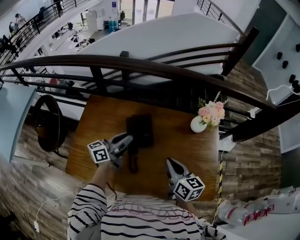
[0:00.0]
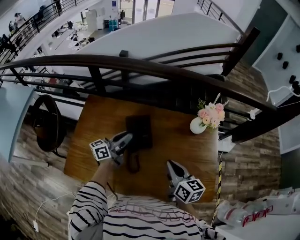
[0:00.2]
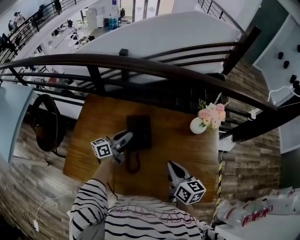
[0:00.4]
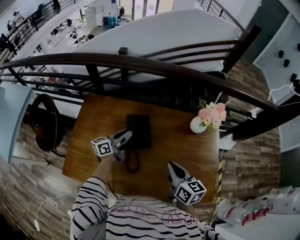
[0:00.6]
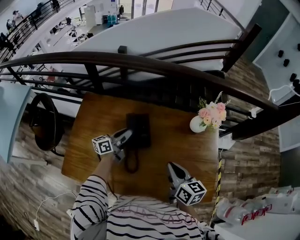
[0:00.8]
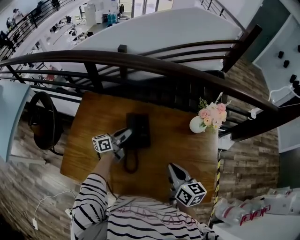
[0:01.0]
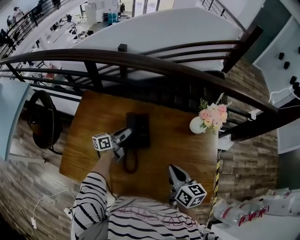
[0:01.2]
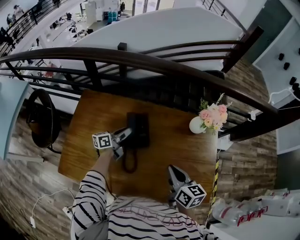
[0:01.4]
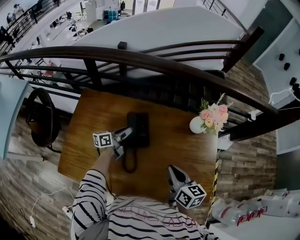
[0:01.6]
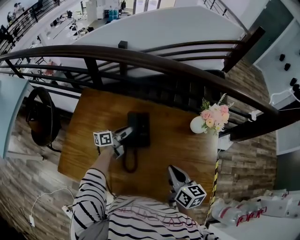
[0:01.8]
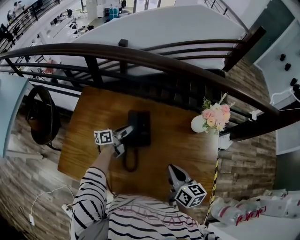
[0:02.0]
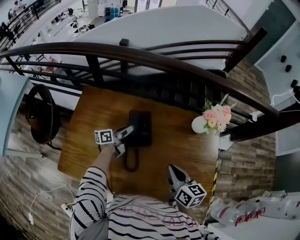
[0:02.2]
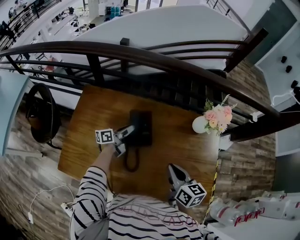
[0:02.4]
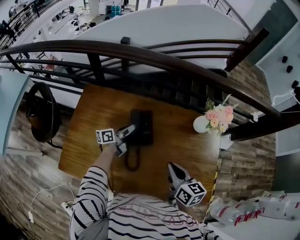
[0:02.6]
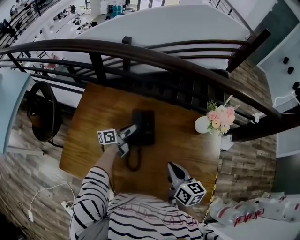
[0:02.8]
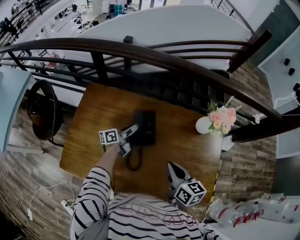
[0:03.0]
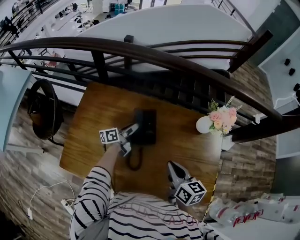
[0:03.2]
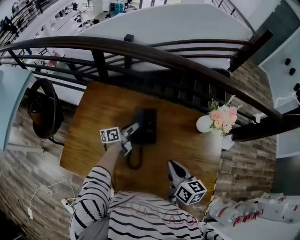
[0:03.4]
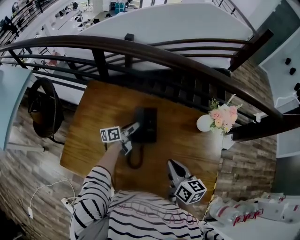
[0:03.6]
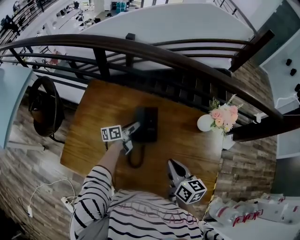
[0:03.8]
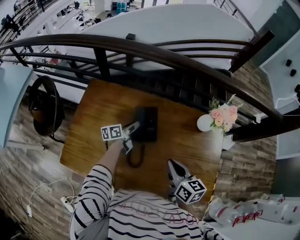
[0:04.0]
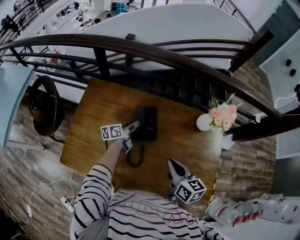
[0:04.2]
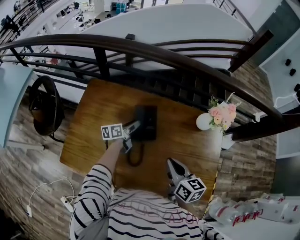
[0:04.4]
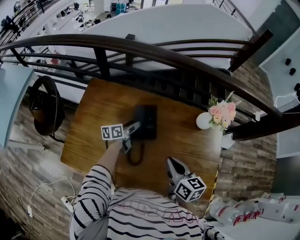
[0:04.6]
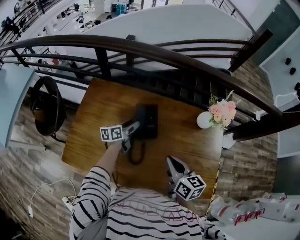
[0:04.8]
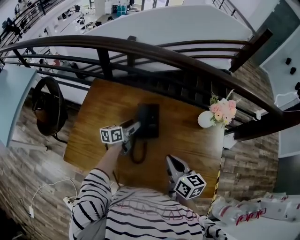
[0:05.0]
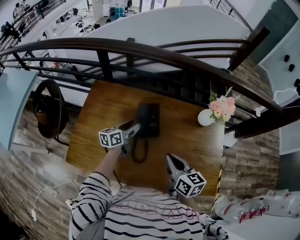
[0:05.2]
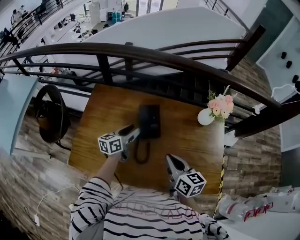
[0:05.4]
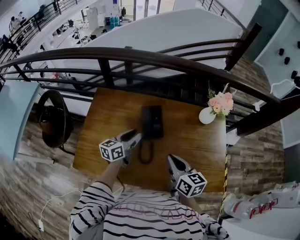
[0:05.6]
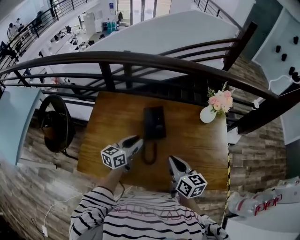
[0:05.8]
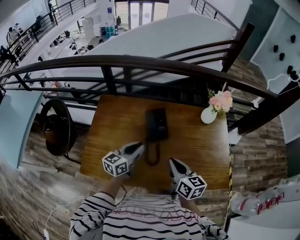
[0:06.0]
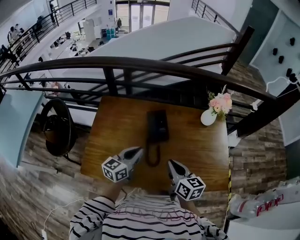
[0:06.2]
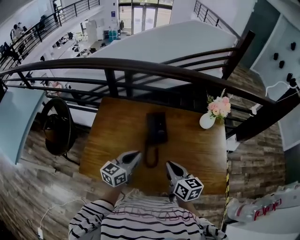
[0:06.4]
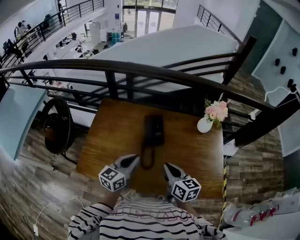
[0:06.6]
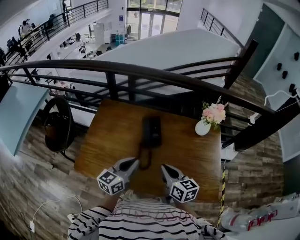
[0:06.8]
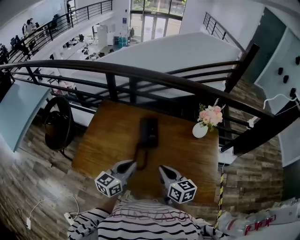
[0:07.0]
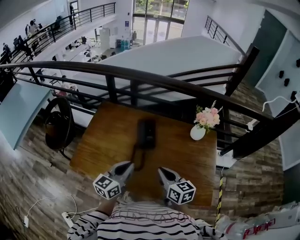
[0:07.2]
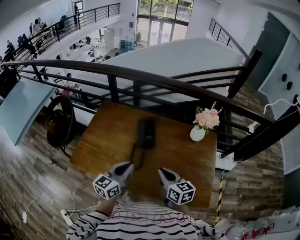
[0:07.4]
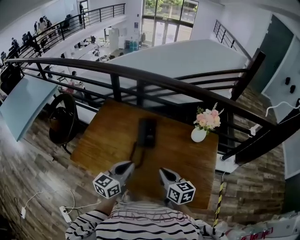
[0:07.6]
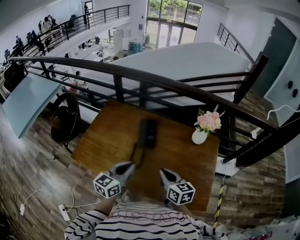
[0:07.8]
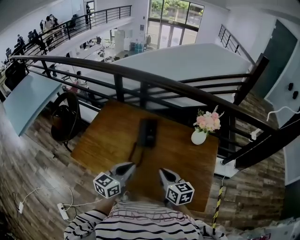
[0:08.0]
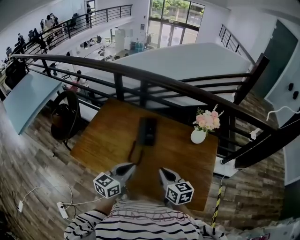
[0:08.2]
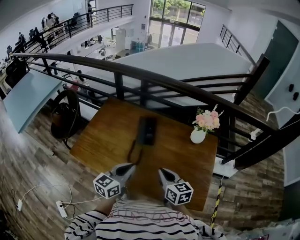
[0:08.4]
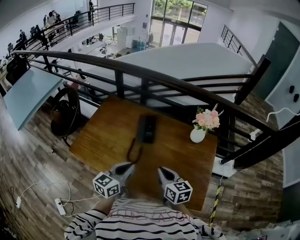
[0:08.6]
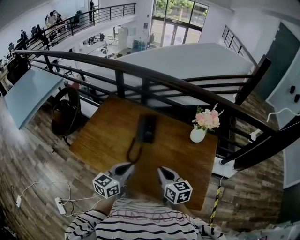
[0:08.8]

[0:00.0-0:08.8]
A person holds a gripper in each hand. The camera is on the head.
0:00.0 to 0:01.4: The left gripper travels downward and forward by some 15 cm.
0:01.4 to 0:04.4: The grippers move only a little.
0:04.4 to 0:05.8: The right gripper is displaced backward and to the left by about 10 cm. Meanwhile the left gripper is displaced backward and upward by roughly 20 cm, and rotates approximately 30 degrees.
0:05.8 to 0:07.4: The right gripper heads to the right and backward, covering roughly 10 cm. The left gripper moves backward, to the right and upward, some 20 cm, and closes.
0:07.4 to 0:08.8: The left gripper moves roughly 5 cm.

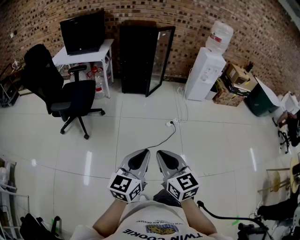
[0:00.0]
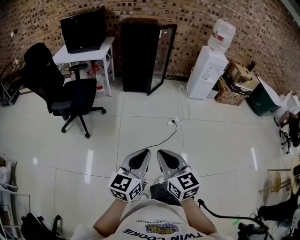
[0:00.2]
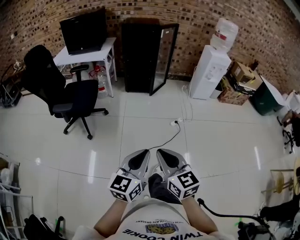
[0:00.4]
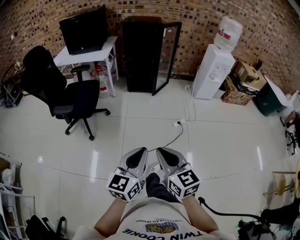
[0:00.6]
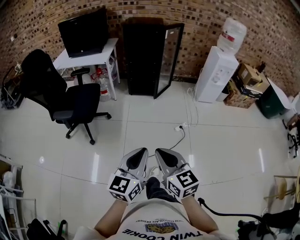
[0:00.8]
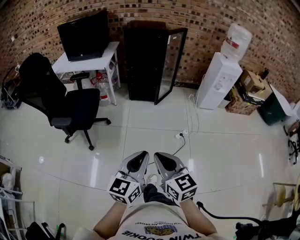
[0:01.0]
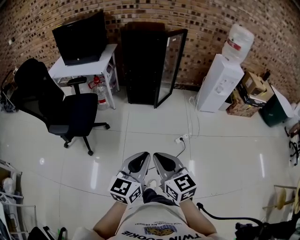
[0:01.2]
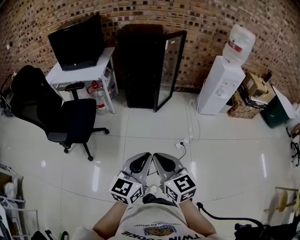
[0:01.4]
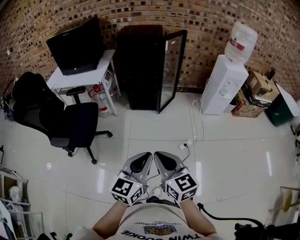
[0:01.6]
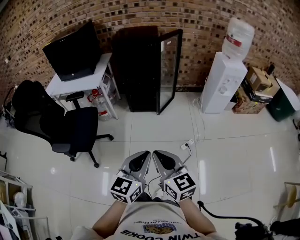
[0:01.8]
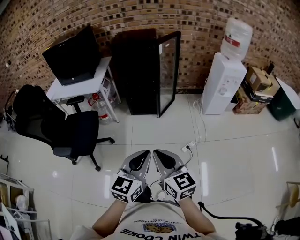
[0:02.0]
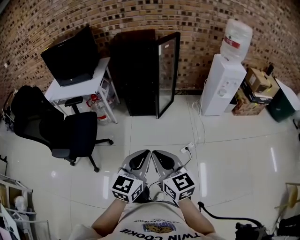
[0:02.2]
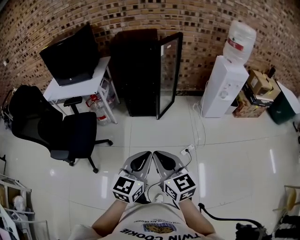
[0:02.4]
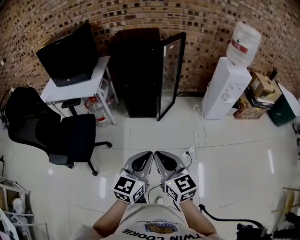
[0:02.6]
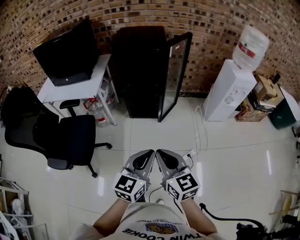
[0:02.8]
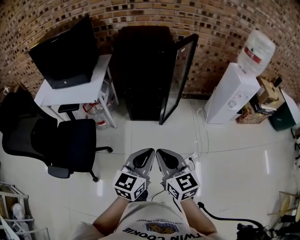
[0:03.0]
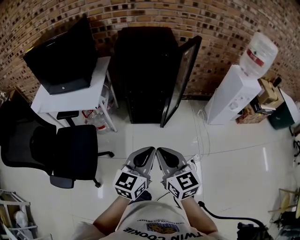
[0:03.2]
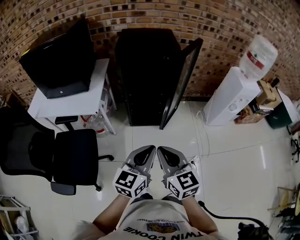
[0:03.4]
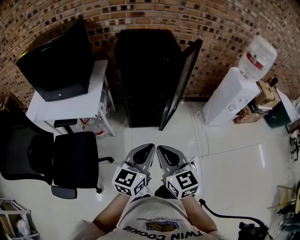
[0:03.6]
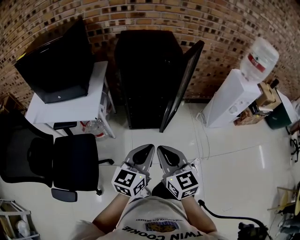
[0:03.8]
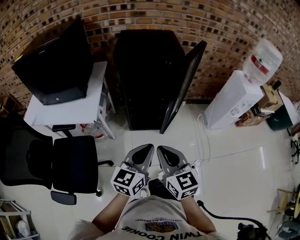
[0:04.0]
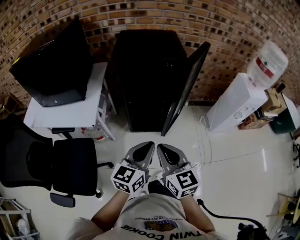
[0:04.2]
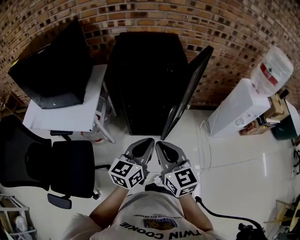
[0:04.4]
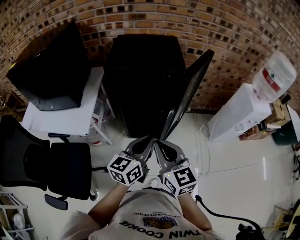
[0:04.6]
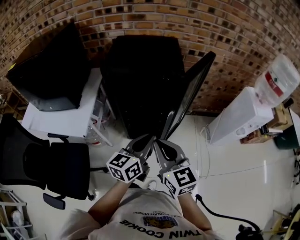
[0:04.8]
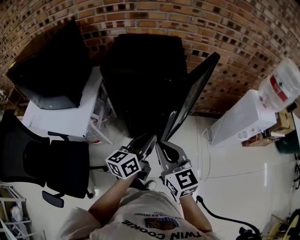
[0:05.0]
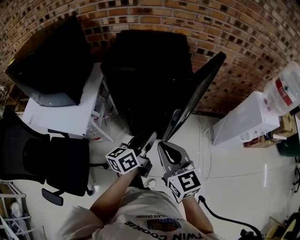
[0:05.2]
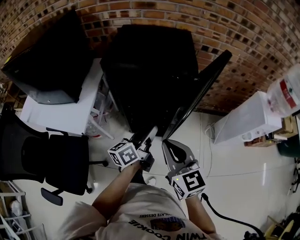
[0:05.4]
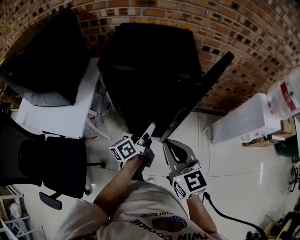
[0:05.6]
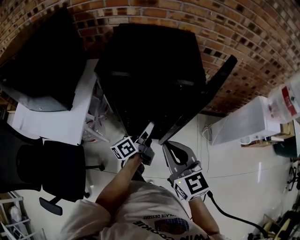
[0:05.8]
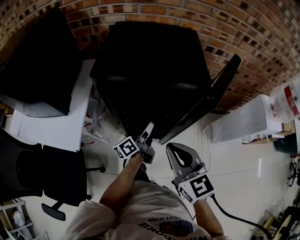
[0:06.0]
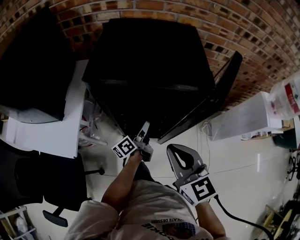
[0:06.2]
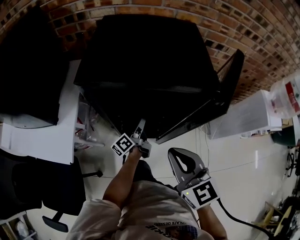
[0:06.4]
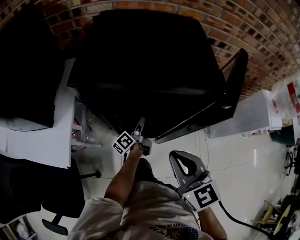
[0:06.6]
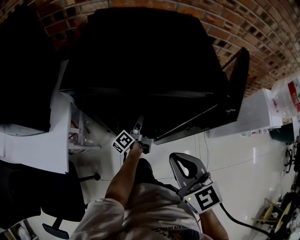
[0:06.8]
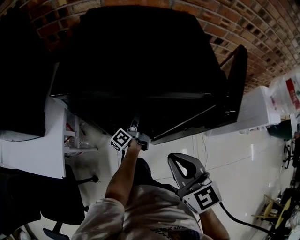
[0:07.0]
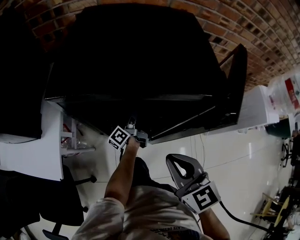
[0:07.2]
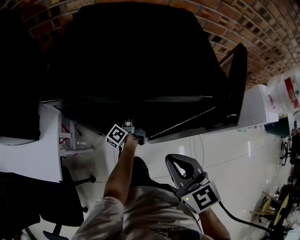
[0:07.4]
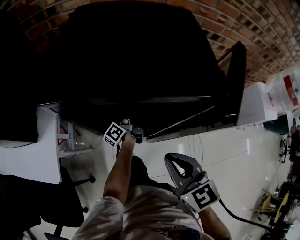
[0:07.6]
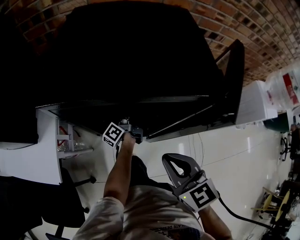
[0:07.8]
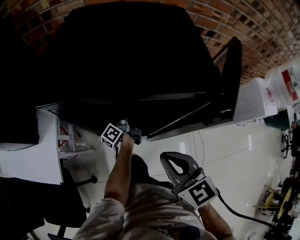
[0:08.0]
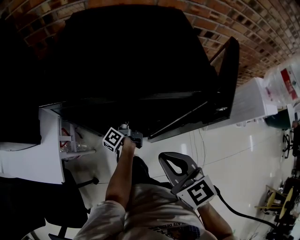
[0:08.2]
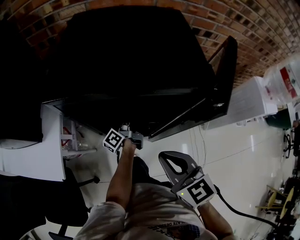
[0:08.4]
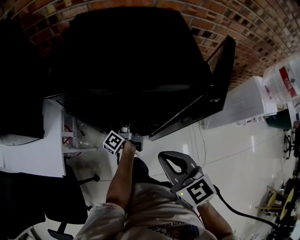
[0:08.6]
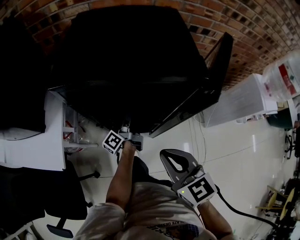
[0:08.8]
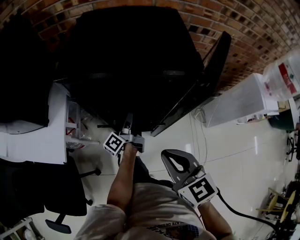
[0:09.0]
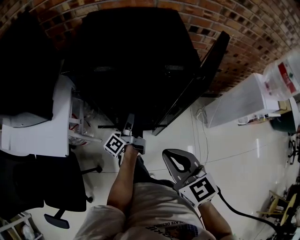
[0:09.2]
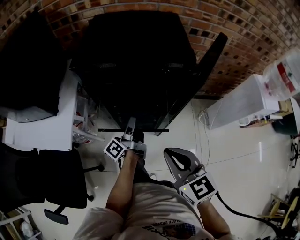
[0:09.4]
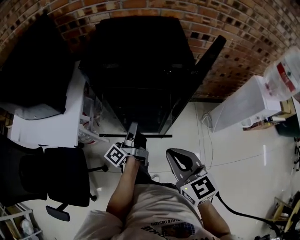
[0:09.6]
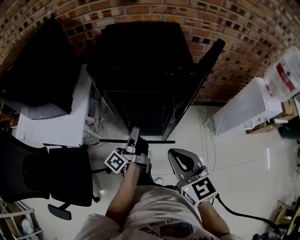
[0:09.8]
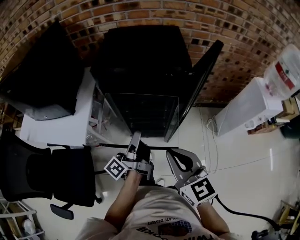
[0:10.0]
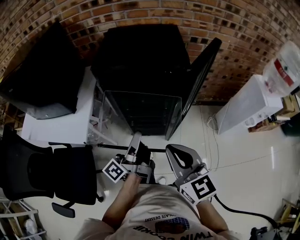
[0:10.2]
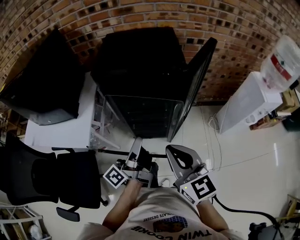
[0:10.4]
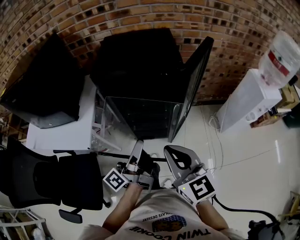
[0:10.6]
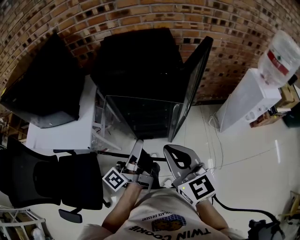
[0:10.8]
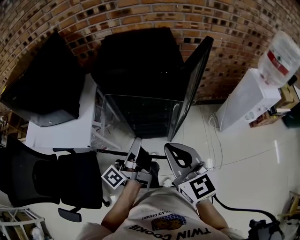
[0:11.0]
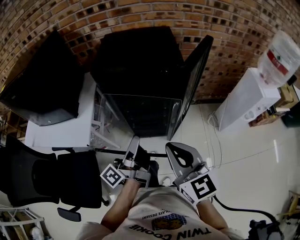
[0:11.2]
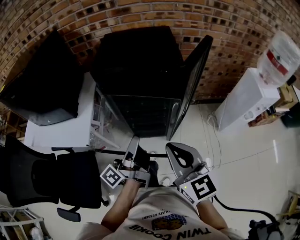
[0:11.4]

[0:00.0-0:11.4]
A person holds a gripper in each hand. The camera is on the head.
0:00.0 to 0:01.4: Both grippers travel together forward, approximately 30 cm.
0:01.4 to 0:02.8: The grippers both shift forward by some 20 cm.
0:02.8 to 0:04.2: The grippers both shift forward and to the left by about 30 cm.
0:04.2 to 0:05.6: The grippers both shift forward by some 20 cm. The left gripper rolls counterclockwise, seen from behind, by about 40 degrees, and opens up.
0:05.6 to 0:07.2: The right gripper moves forward and downward, approximately 15 cm; the left gripper travels forward and downward by roughly 30 cm, and turns by roughly 20 degrees.
0:07.2 to 0:08.6: The left gripper changes place by some 5 cm, and closes.
0:08.6 to 0:10.0: The left gripper heads backward and upward, covering approximately 30 cm, while the right gripper heads backward and upward, covering some 15 cm.
0:10.0 to 0:11.4: The left gripper travels backward and upward by approximately 10 cm.

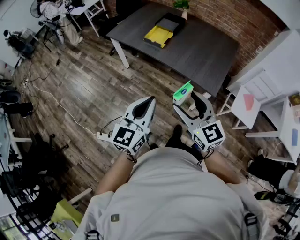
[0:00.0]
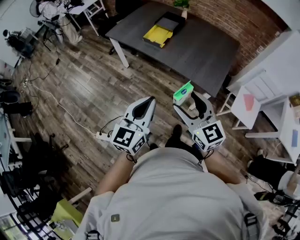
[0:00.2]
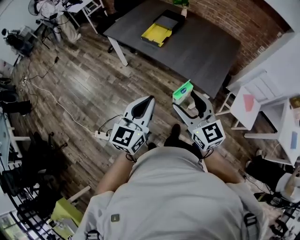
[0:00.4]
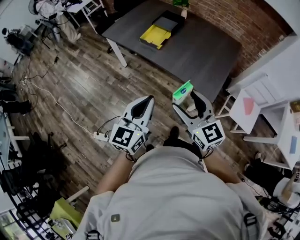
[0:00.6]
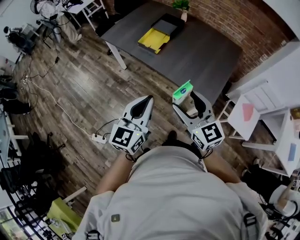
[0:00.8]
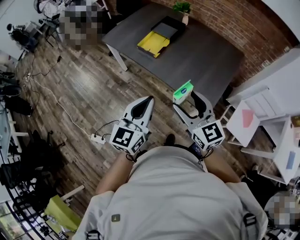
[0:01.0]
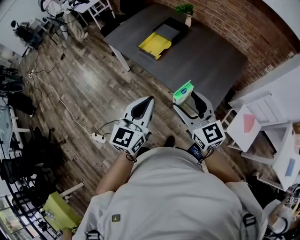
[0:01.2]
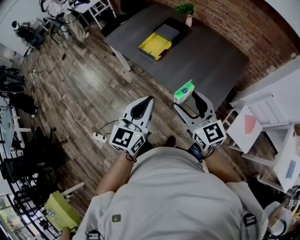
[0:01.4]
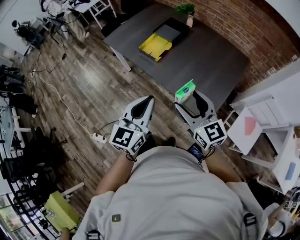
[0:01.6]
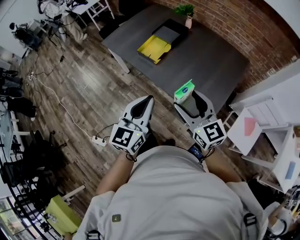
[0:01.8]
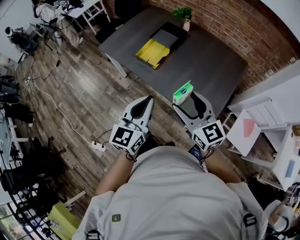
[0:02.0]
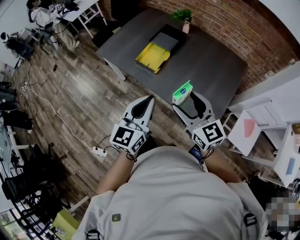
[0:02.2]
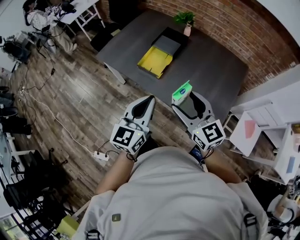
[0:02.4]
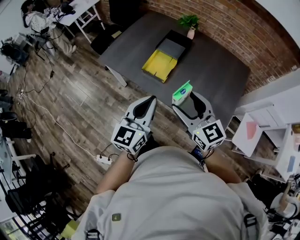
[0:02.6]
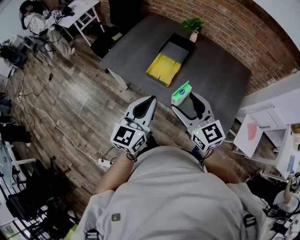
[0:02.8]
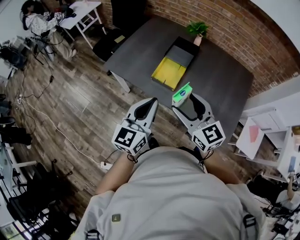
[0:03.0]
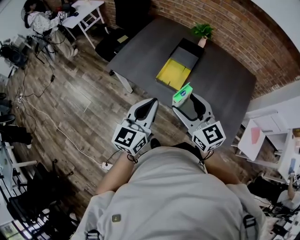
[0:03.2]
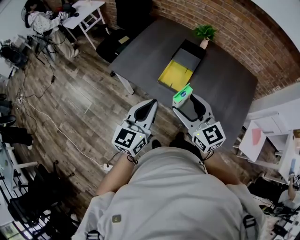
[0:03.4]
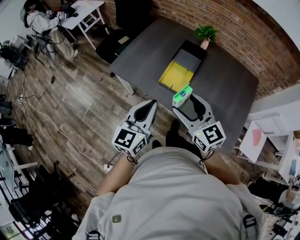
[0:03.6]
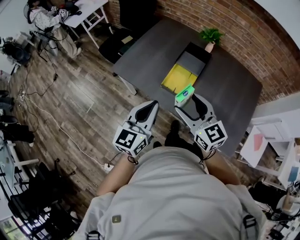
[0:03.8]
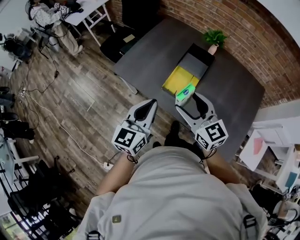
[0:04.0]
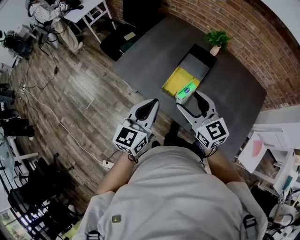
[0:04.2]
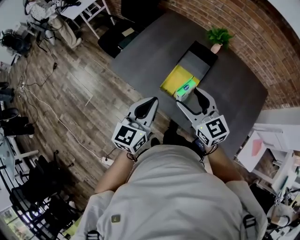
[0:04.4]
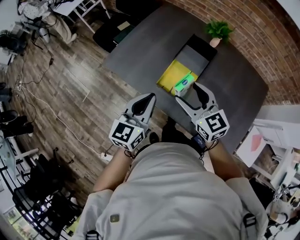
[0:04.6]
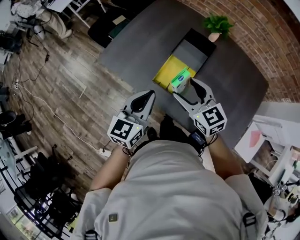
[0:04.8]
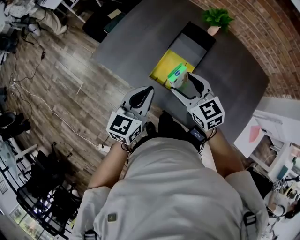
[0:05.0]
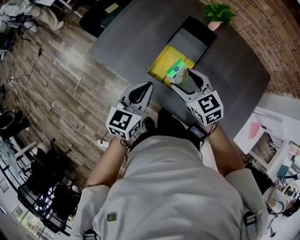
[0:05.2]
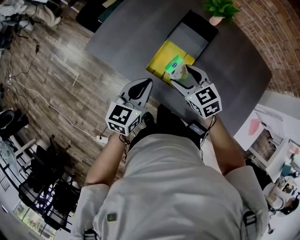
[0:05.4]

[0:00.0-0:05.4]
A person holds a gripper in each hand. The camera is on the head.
0:00.0 to 0:01.4: Both grippers move forward and to the right, some 25 cm.
0:01.4 to 0:02.8: The grippers both shift forward and to the left by about 30 cm.
0:02.8 to 0:04.0: The two grippers go approximately 15 cm forward and to the left.
0:04.0 to 0:05.4: The left gripper travels downward, forward and to the right by approximately 20 cm, and swivels some 20 degrees, while the right gripper moves downward and forward, some 25 cm, and changes its angle by some 30 degrees.
